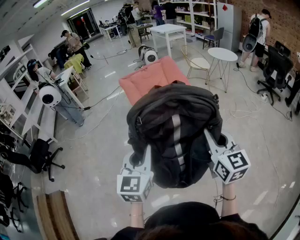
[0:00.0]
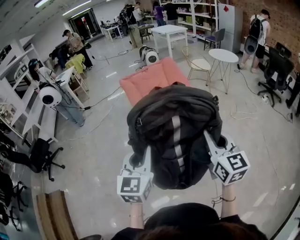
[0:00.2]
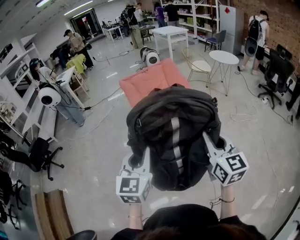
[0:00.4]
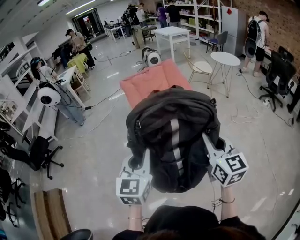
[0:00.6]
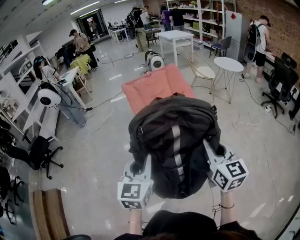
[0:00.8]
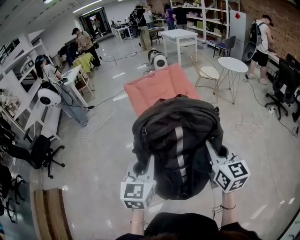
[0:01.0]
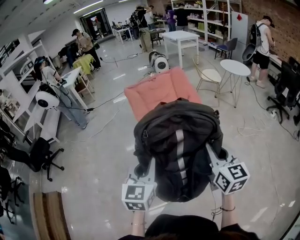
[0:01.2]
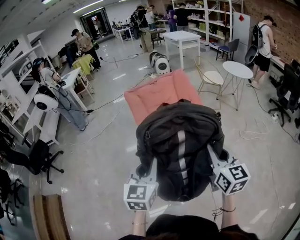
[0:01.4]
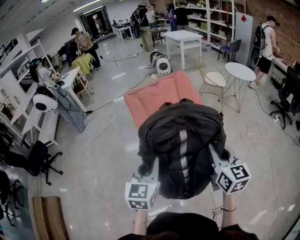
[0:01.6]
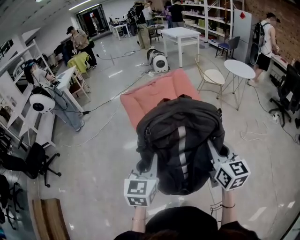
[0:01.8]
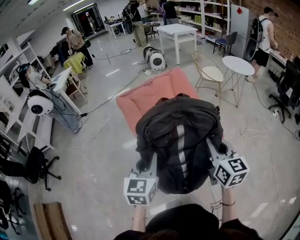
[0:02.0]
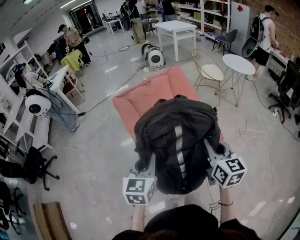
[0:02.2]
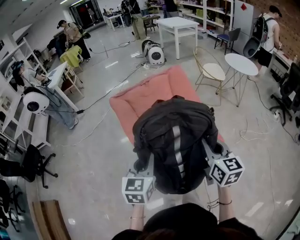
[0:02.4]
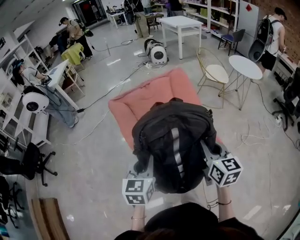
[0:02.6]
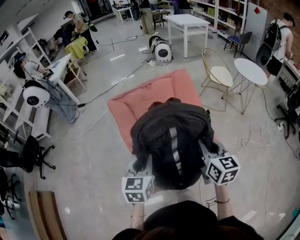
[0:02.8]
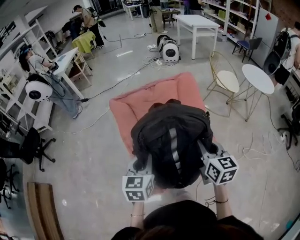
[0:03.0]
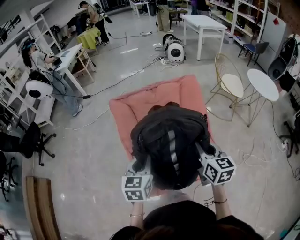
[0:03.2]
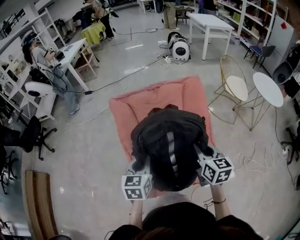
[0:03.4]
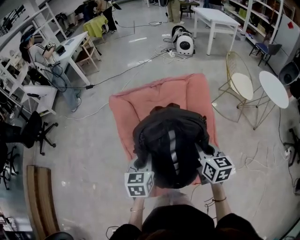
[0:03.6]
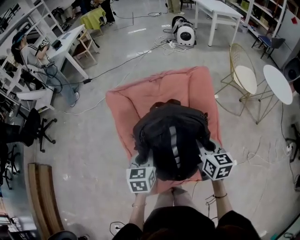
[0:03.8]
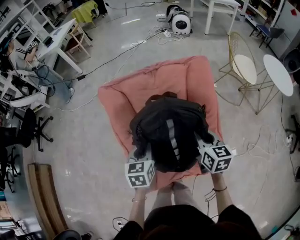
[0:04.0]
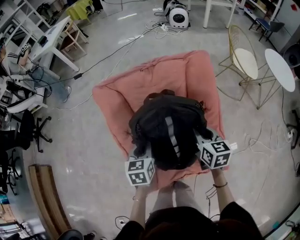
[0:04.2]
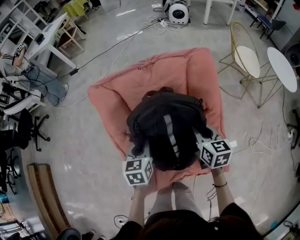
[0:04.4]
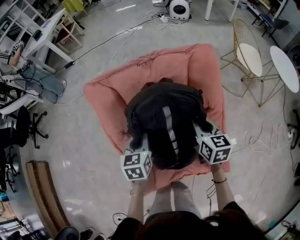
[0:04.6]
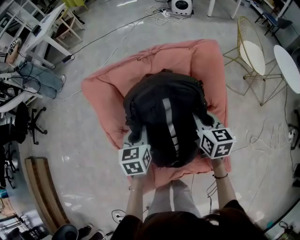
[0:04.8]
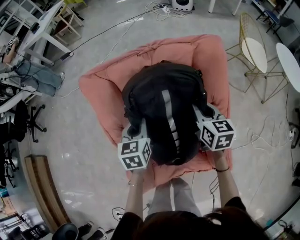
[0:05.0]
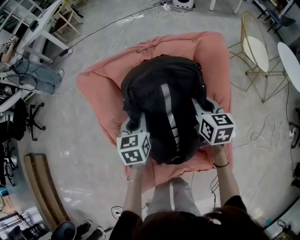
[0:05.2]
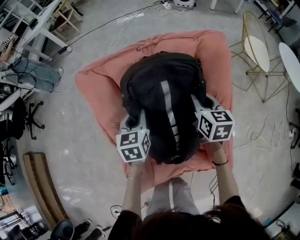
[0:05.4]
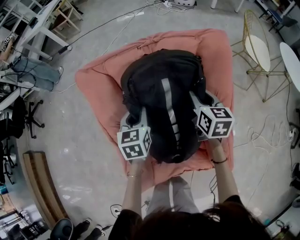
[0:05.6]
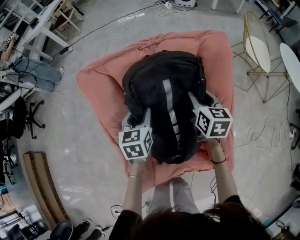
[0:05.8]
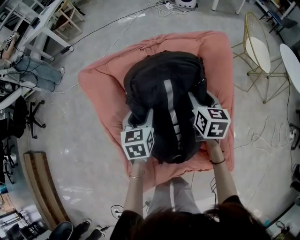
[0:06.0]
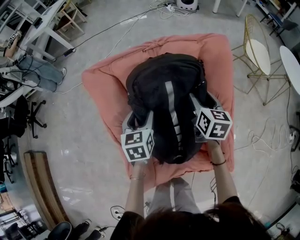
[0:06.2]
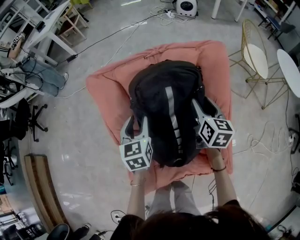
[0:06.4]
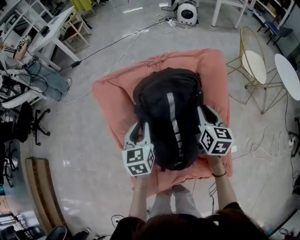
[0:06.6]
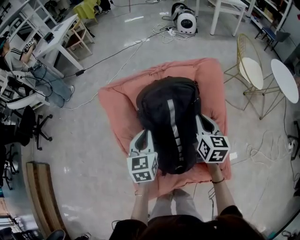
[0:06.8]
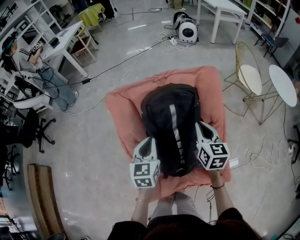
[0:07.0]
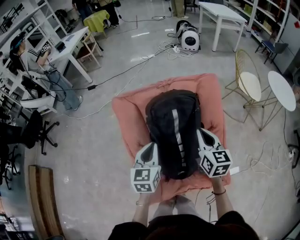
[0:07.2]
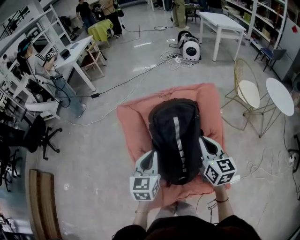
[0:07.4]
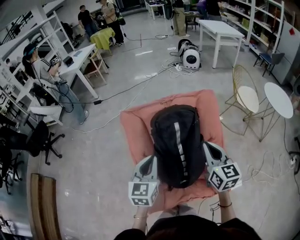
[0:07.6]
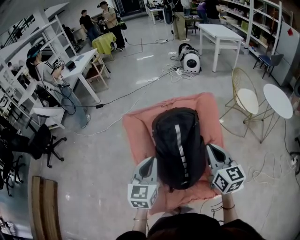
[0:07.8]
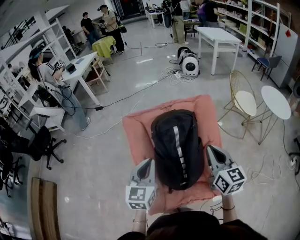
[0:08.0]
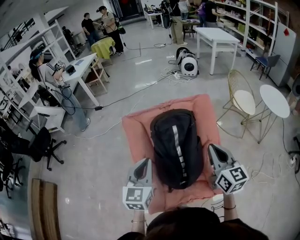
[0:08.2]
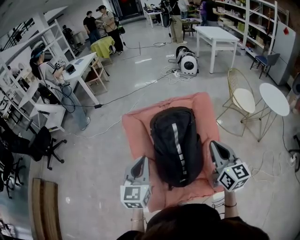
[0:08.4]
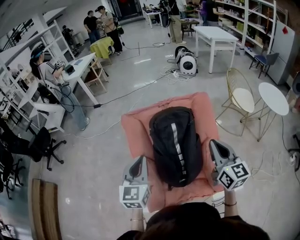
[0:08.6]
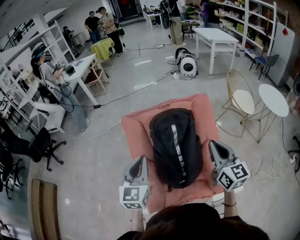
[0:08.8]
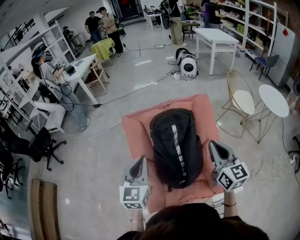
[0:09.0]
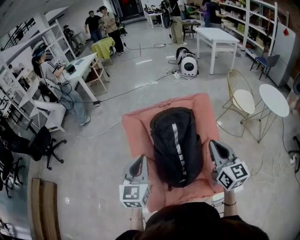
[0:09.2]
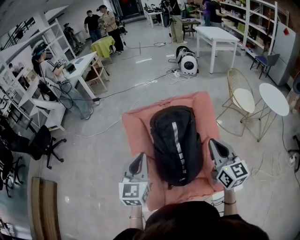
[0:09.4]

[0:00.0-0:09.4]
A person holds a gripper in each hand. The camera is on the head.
0:00.0 to 0:01.6: The grippers both shift forward by some 25 cm.
0:01.6 to 0:03.2: Both grippers move forward, about 35 cm. The left gripper swivels roughly 20 degrees.
0:03.2 to 0:04.8: Both grippers travel together forward and downward, roughly 30 cm.
0:04.8 to 0:06.2: The left gripper opens its fingers. The right gripper goes roughly 5 cm forward, and opens up.
0:06.2 to 0:07.8: The grippers both shift upward and backward by approximately 30 cm. The right gripper turns by about 20 degrees, and closes up. The left gripper changes its angle by some 20 degrees, and closes its fingers.
0:07.8 to 0:09.4: The left gripper moves approximately 5 cm. The right gripper moves about 5 cm.

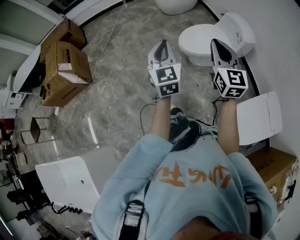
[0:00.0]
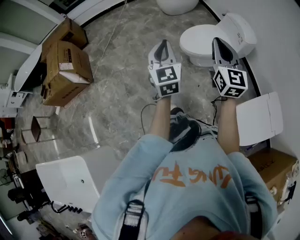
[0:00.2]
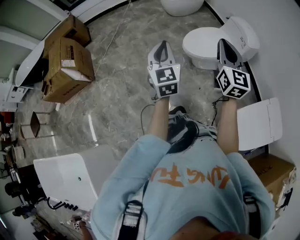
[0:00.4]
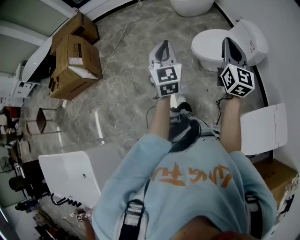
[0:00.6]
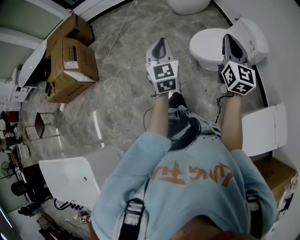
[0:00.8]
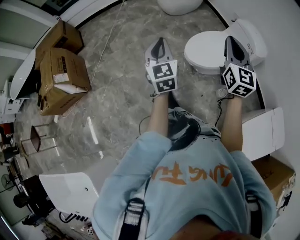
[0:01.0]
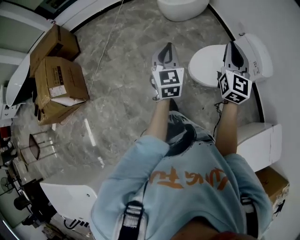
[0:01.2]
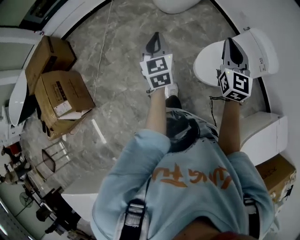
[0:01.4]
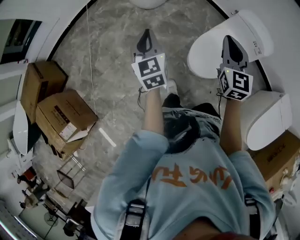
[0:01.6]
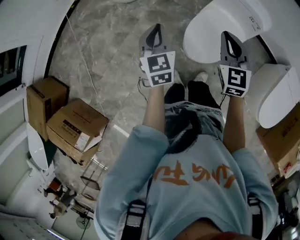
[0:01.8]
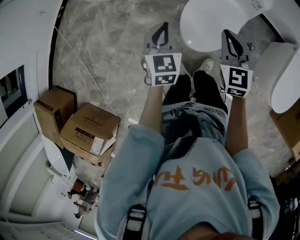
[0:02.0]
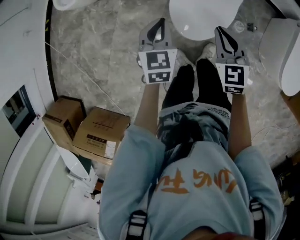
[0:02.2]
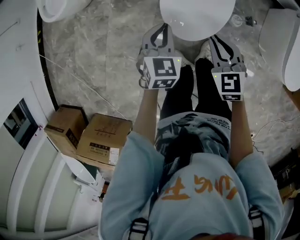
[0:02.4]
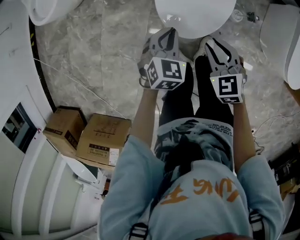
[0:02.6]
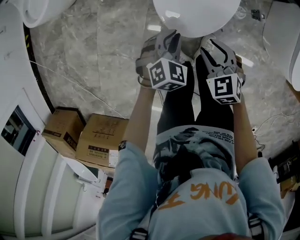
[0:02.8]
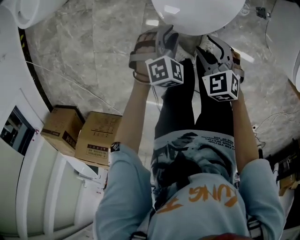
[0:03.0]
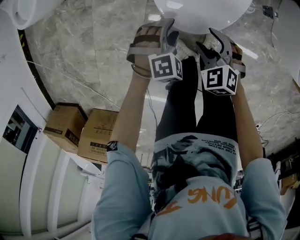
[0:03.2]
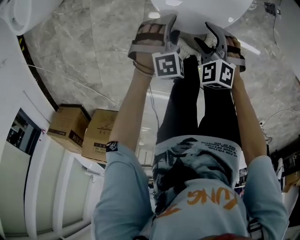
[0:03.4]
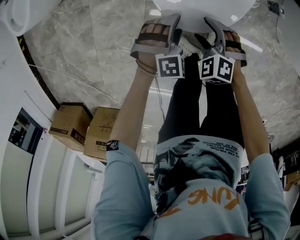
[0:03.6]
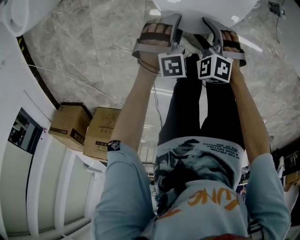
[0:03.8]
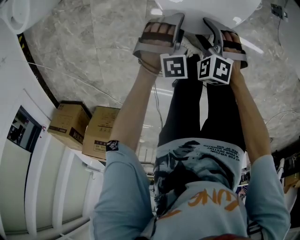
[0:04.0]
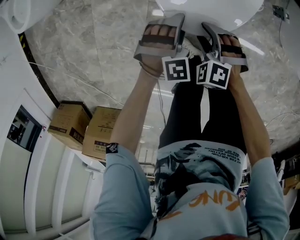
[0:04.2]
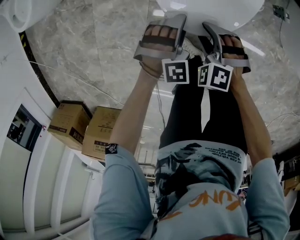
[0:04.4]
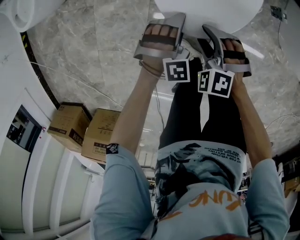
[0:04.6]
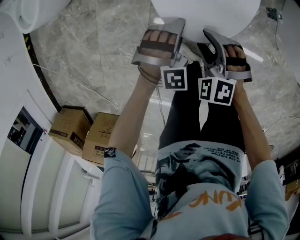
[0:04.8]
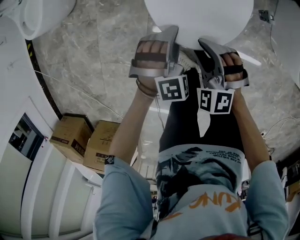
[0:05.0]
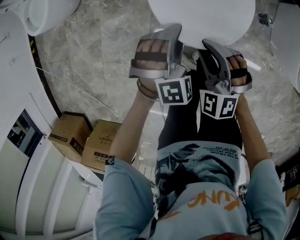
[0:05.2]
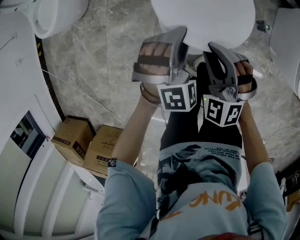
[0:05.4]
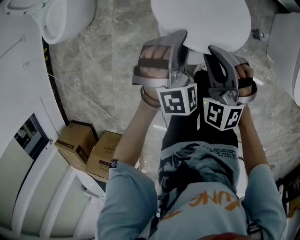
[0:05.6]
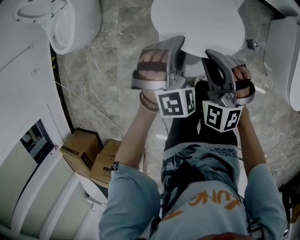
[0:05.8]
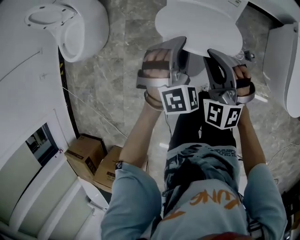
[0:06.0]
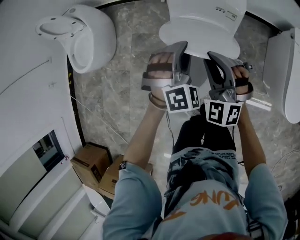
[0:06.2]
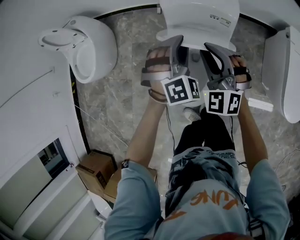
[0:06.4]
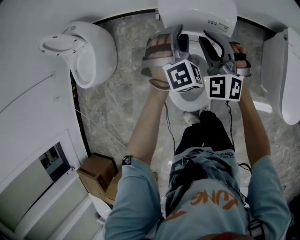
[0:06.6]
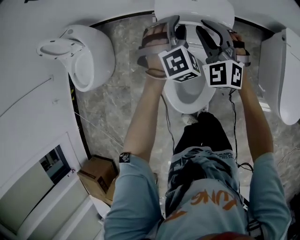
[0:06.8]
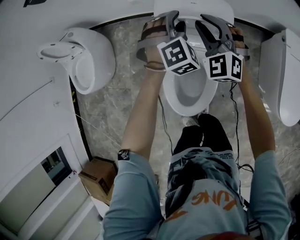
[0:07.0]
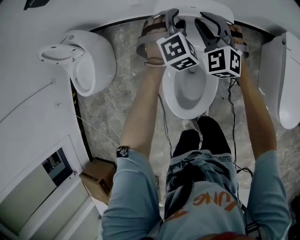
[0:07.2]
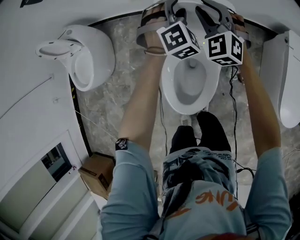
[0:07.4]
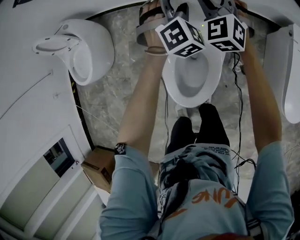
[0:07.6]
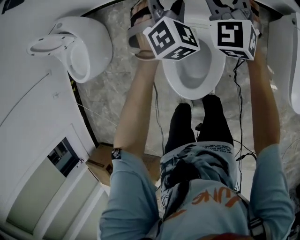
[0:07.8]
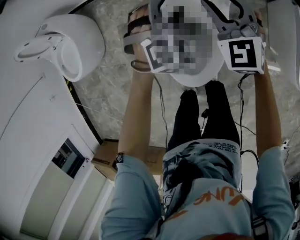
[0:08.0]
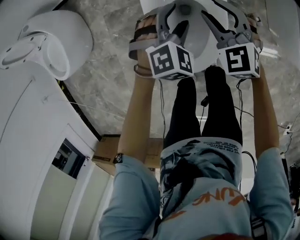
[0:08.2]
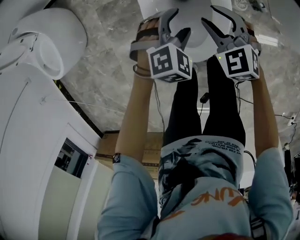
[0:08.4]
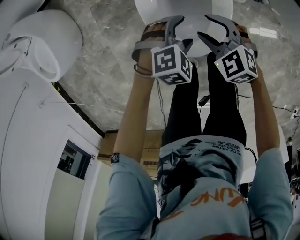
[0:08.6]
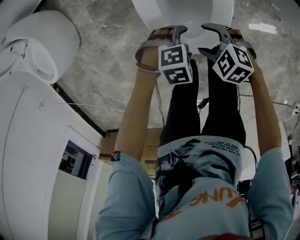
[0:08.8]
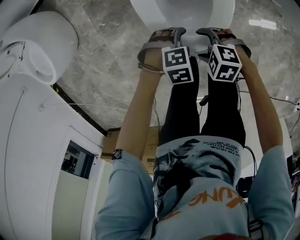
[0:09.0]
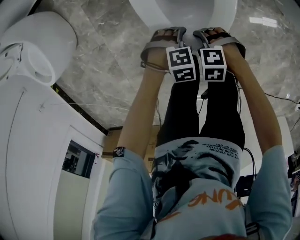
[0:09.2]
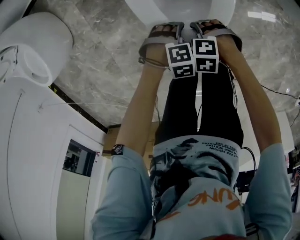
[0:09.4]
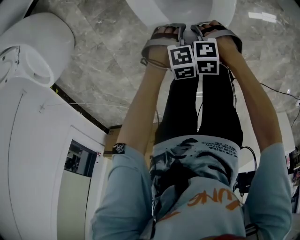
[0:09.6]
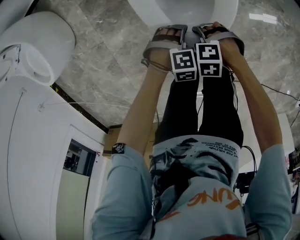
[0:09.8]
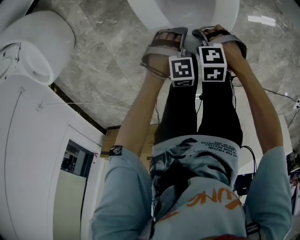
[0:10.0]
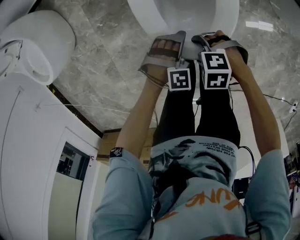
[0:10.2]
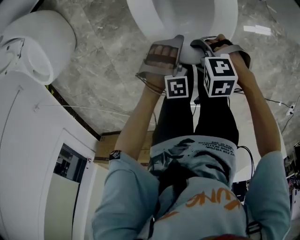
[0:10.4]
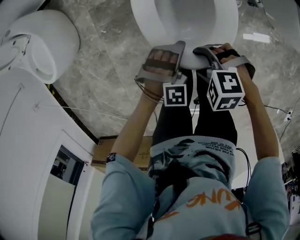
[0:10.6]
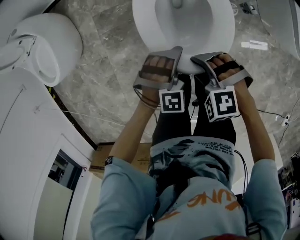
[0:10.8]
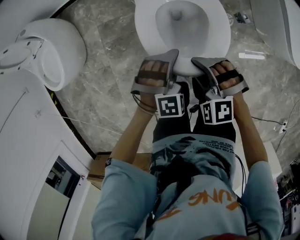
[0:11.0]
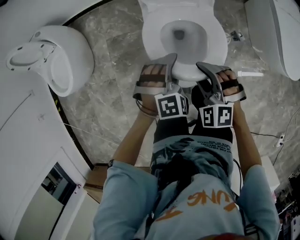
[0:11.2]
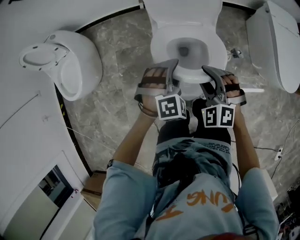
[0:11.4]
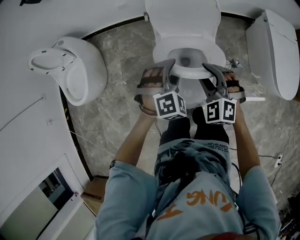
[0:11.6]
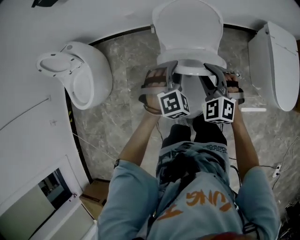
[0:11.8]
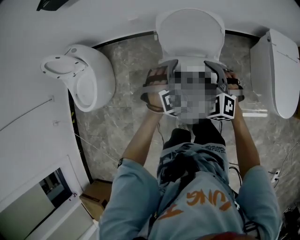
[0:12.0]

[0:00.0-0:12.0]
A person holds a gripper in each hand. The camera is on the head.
0:00.0 to 0:01.6: The pair of grippers is taken forward, approximately 60 cm. The right gripper swivels roughly 30 degrees.
0:01.6 to 0:03.0: Both grippers move downward, some 50 cm. The left gripper tips its fingers downward by roughly 40 degrees, and opens. The right gripper points its fingers about 40 degrees further downward, and opens.
0:03.0 to 0:04.4: Both grippers travel together downward, about 10 cm. The left gripper turns by about 30 degrees, and opens up; the right gripper rotates approximately 30 degrees.
0:04.4 to 0:06.0: Both grippers travel together upward and forward, approximately 40 cm. The right gripper points its fingers some 40 degrees further upward, and closes its fingers, while the left gripper turns by roughly 20 degrees, and closes its fingers.
0:06.0 to 0:07.6: The two grippers go some 30 cm forward. The left gripper opens.
0:07.6 to 0:09.0: The two grippers travel together, roughly 50 cm. The right gripper tips its fingers downward by roughly 40 degrees, and opens its fingers; the left gripper angles its fingers downward, by about 40 degrees.
0:09.0 to 0:10.4: The right gripper is displaced upward by approximately 5 cm. Meanwhile the left gripper changes its angle by roughly 40 degrees.
0:10.4 to 0:12.0: Both grippers travel together upward, about 35 cm. The right gripper tilts its fingers about 30 degrees upward, and closes up; the left gripper swivels approximately 30 degrees.

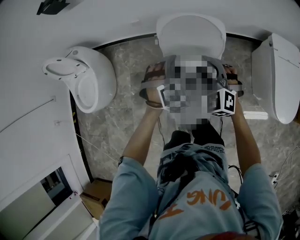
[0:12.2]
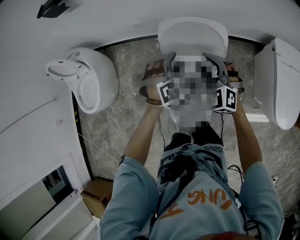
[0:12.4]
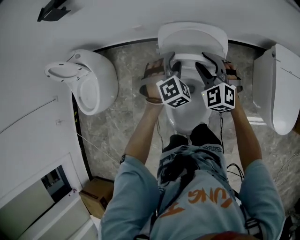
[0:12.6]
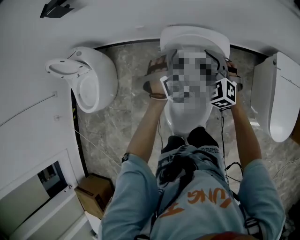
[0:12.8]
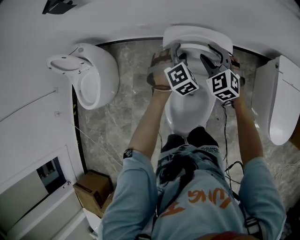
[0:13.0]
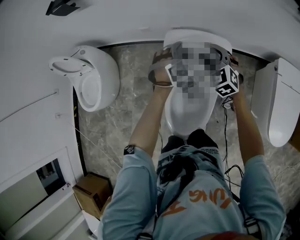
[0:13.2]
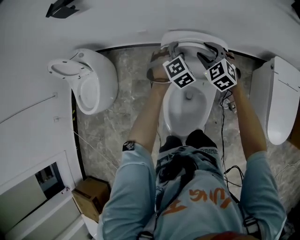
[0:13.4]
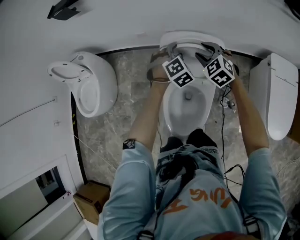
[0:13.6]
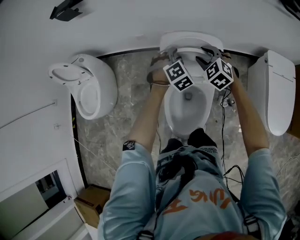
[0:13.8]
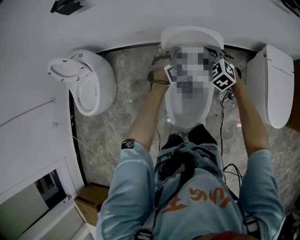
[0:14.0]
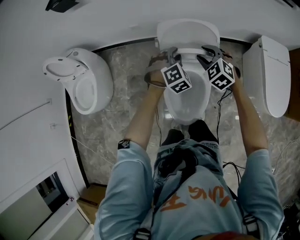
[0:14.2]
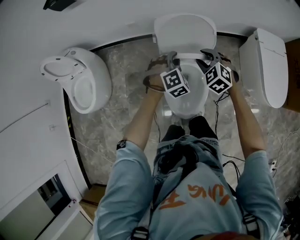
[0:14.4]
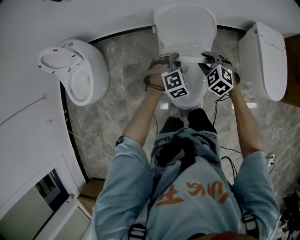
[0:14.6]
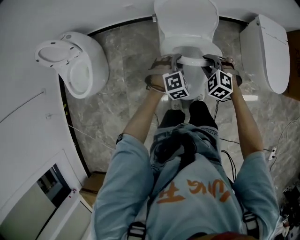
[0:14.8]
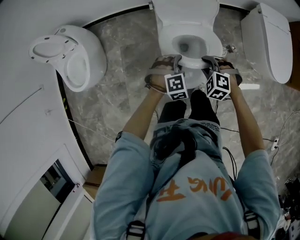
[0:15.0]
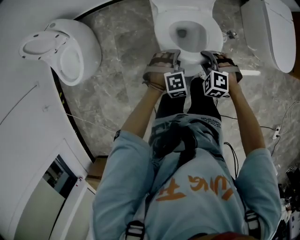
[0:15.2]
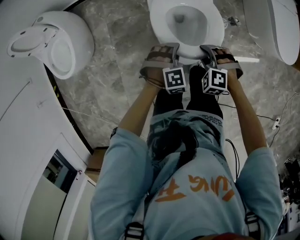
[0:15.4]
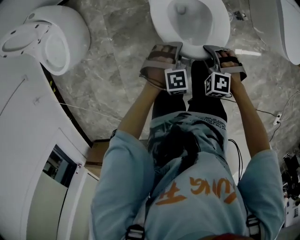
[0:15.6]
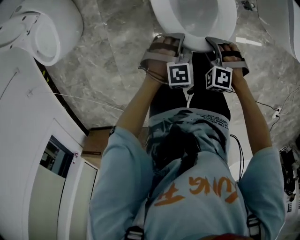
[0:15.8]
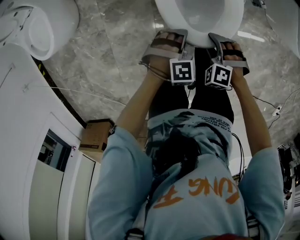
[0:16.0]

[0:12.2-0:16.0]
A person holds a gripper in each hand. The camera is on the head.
0:12.2 to 0:13.4: Both grippers travel together forward, about 15 cm.
0:13.4 to 0:14.8: The grippers both shift backward by about 30 cm. The left gripper turns by roughly 20 degrees. The right gripper changes its angle by roughly 20 degrees.
0:14.8 to 0:16.0: Both grippers move downward and backward, roughly 30 cm. The right gripper turns by roughly 20 degrees, and opens its fingers.
